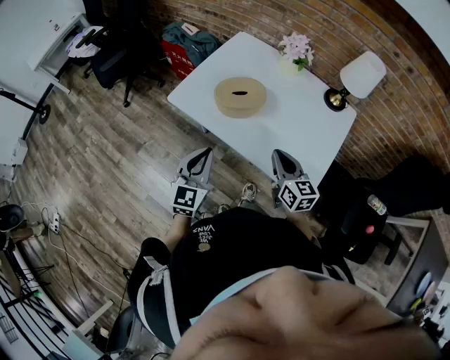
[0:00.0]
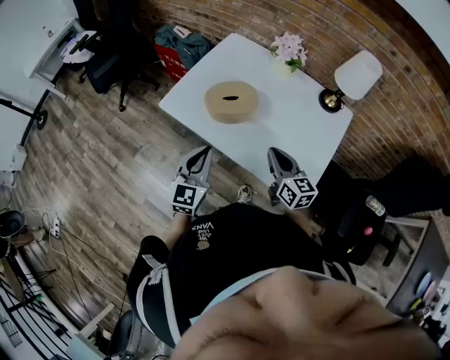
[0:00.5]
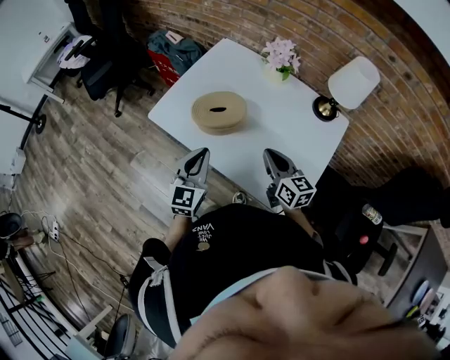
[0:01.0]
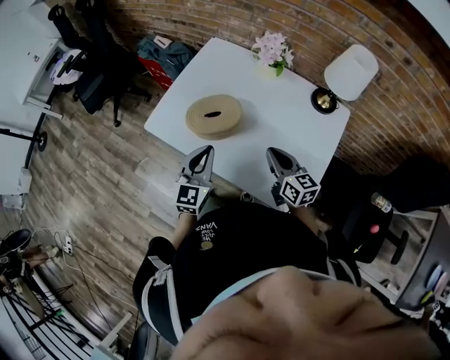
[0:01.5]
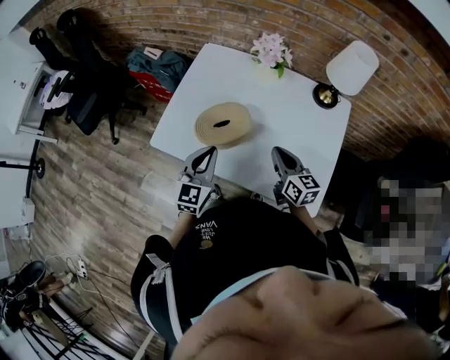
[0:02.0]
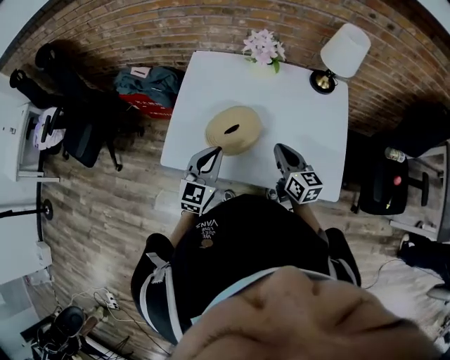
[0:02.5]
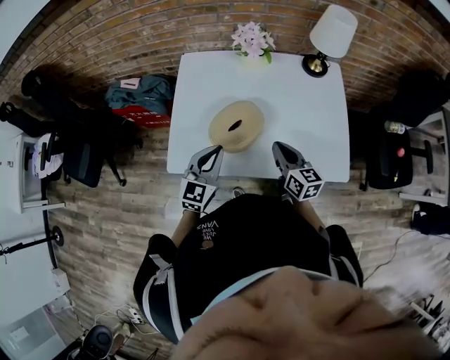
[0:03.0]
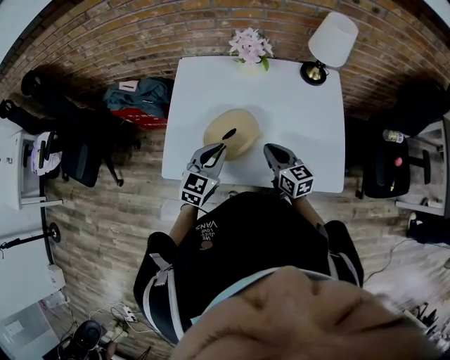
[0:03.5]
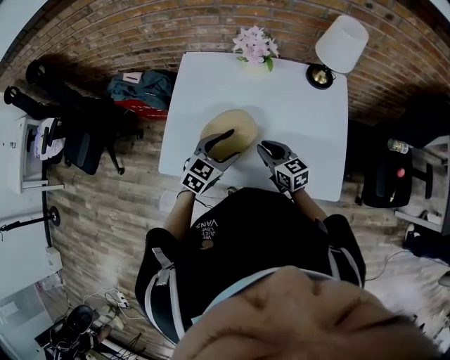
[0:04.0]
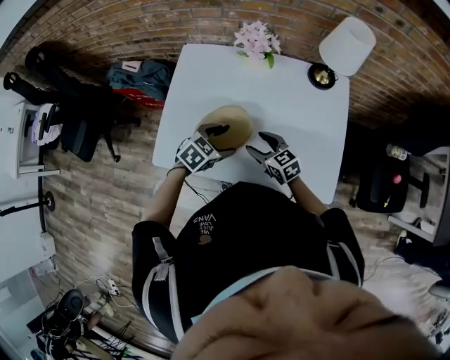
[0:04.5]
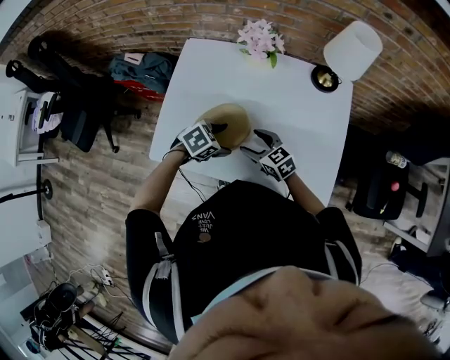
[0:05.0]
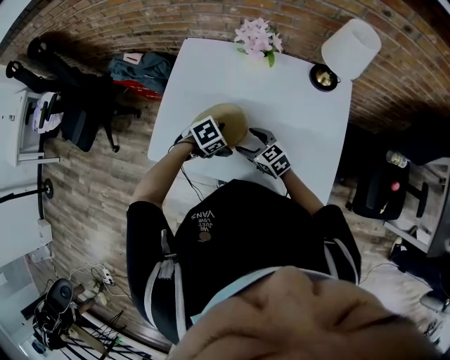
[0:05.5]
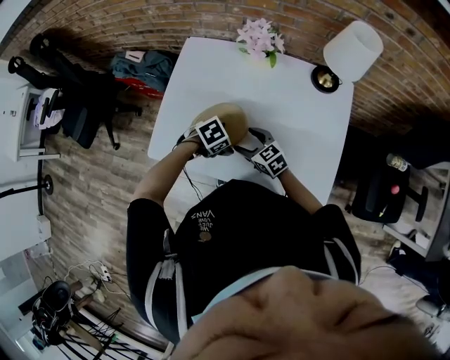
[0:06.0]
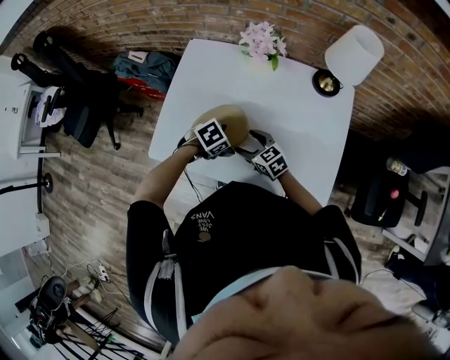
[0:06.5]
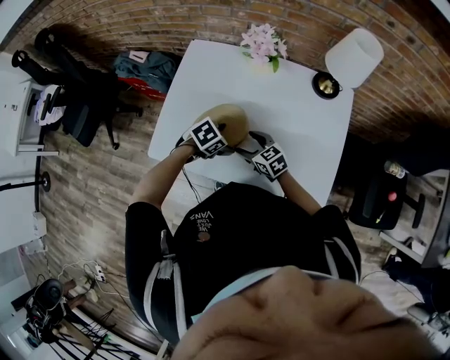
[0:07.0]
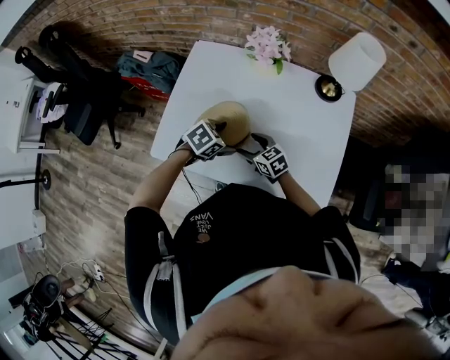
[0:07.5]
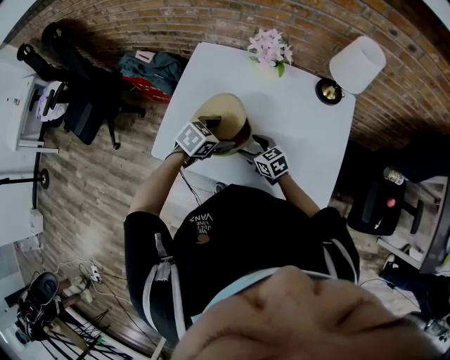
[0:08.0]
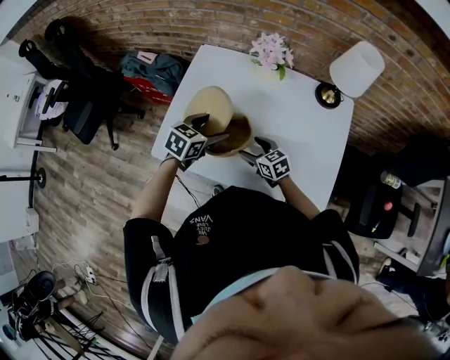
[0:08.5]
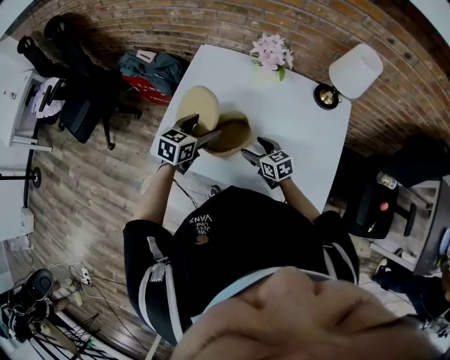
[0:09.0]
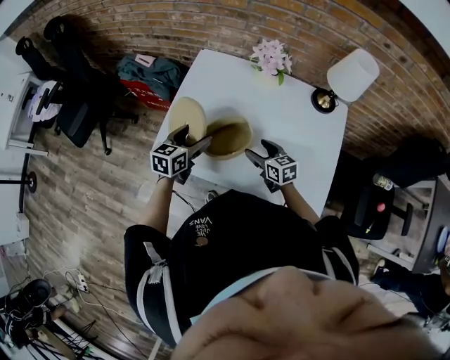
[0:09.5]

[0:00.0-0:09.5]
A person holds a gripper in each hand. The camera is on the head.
0:00.0 to 0:02.0: The two grippers go approximately 15 cm forward.
0:02.0 to 0:04.0: The right gripper moves to the left and downward, approximately 10 cm. Meanwhile the left gripper is displaced forward and downward by roughly 10 cm, moves about 5 cm to the left and comes back, swivels some 40 degrees, and opens up.
0:04.0 to 0:05.5: The right gripper travels downward by some 5 cm, turns by about 30 degrees, and opens, while the left gripper heads downward, covering some 10 cm, and points its fingers some 30 degrees further downward.
0:05.5 to 0:07.5: The grippers make only small movements.
0:07.5 to 0:09.5: The left gripper ends up about 15 cm from where it was, and points its fingers roughly 30 degrees further upward.

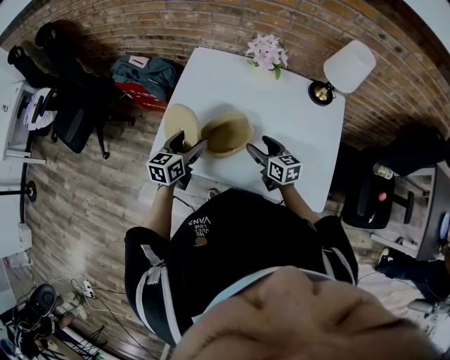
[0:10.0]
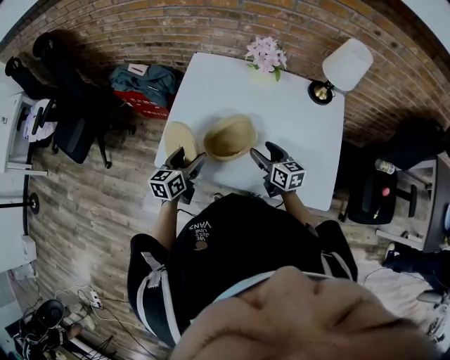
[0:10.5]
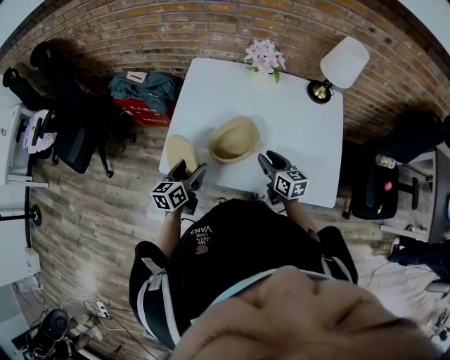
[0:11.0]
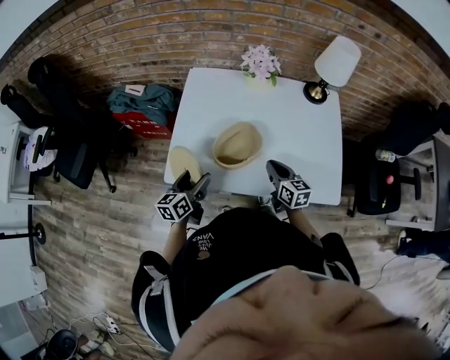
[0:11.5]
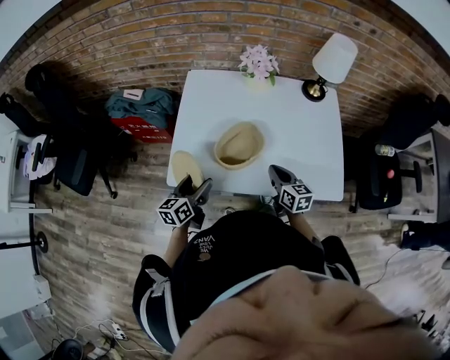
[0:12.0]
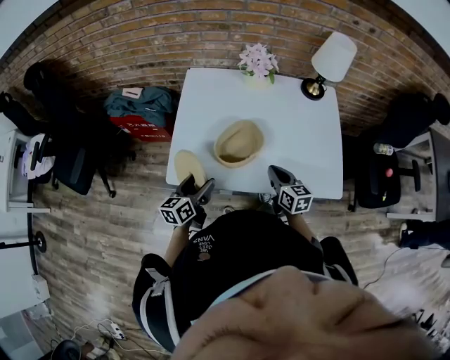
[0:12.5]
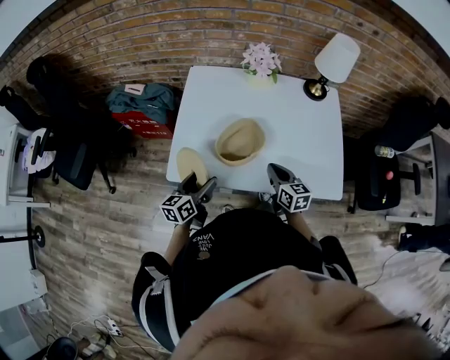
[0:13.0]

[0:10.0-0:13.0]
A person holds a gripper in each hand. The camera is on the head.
0:10.0 to 0:11.5: The right gripper heads backward, covering about 5 cm, and closes up. Meanwhile the left gripper shifts roughly 10 cm backward and to the left.
0:11.5 to 0:13.0: There are only small adjustments of the grippers.

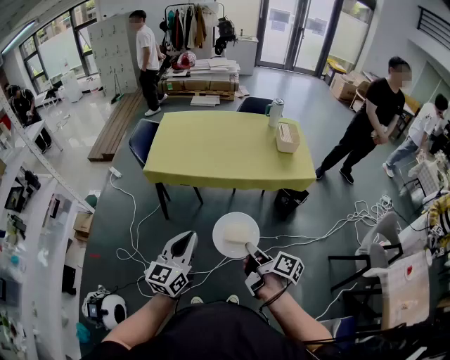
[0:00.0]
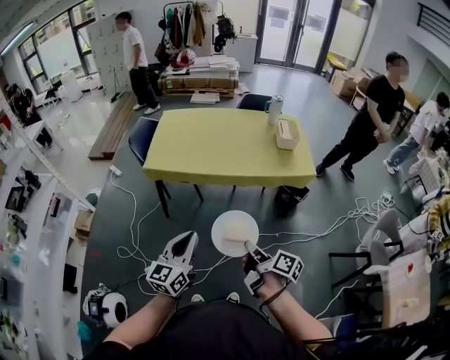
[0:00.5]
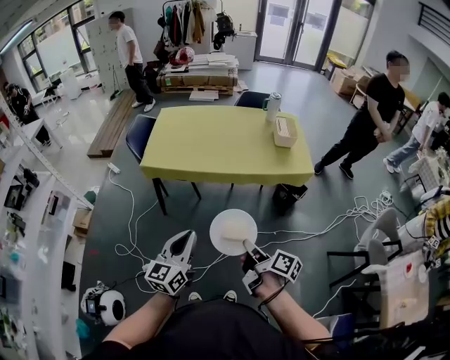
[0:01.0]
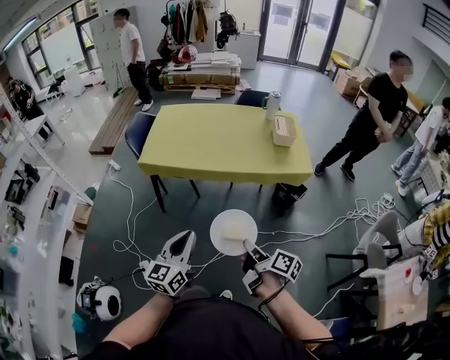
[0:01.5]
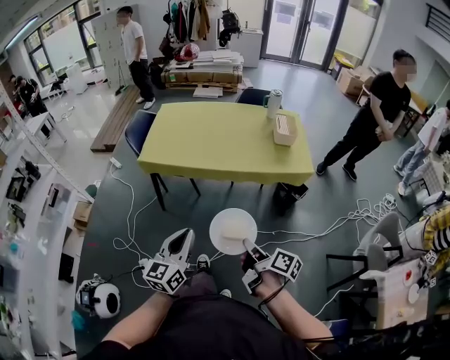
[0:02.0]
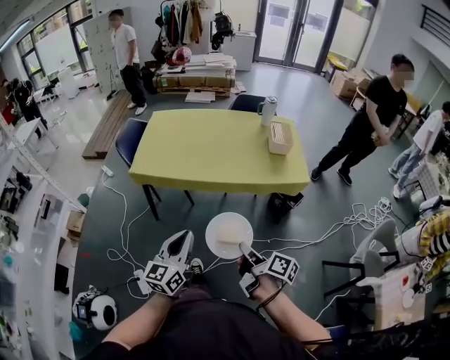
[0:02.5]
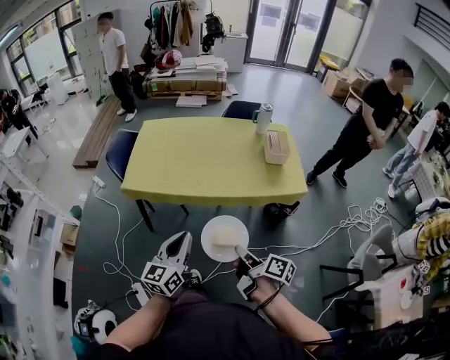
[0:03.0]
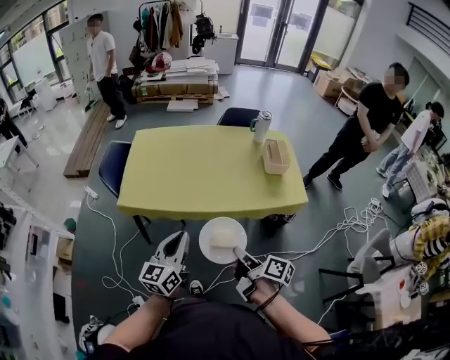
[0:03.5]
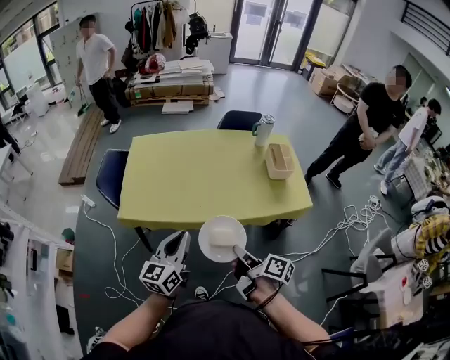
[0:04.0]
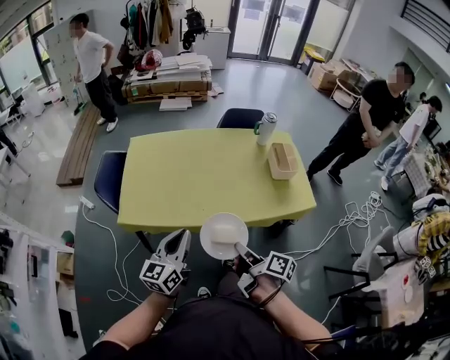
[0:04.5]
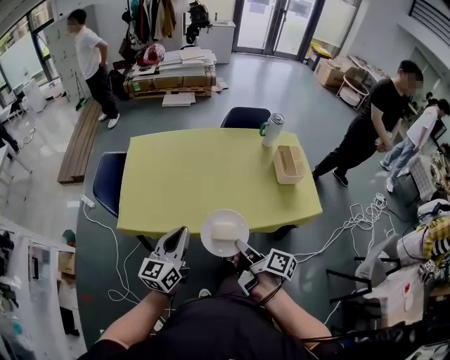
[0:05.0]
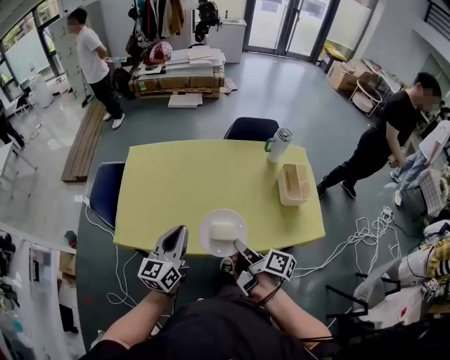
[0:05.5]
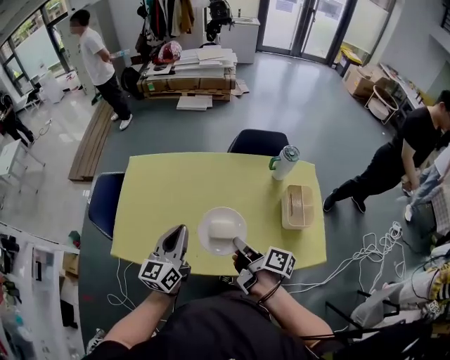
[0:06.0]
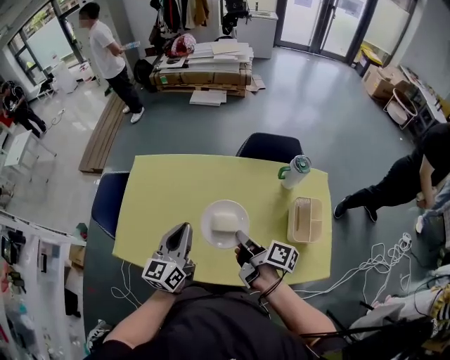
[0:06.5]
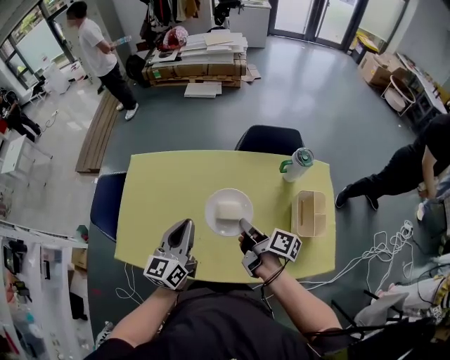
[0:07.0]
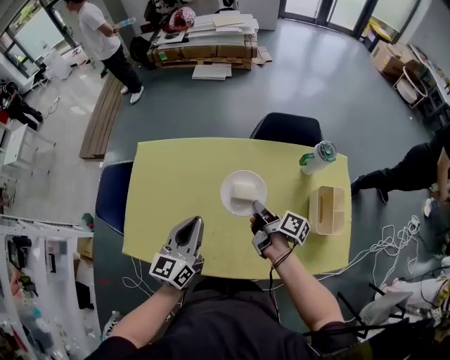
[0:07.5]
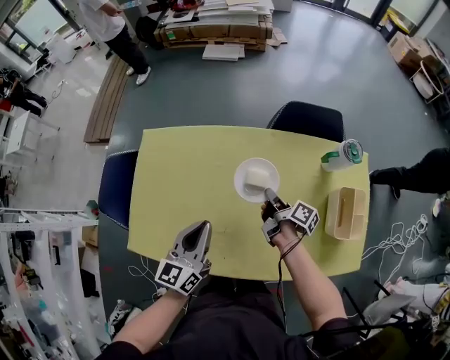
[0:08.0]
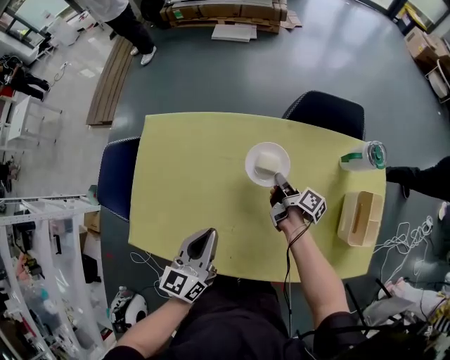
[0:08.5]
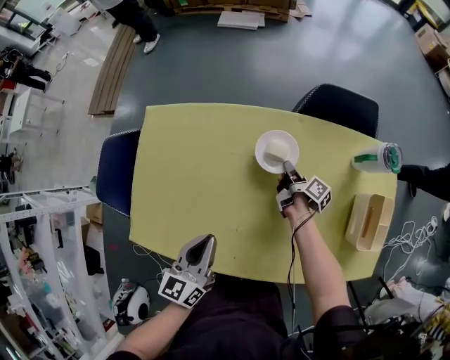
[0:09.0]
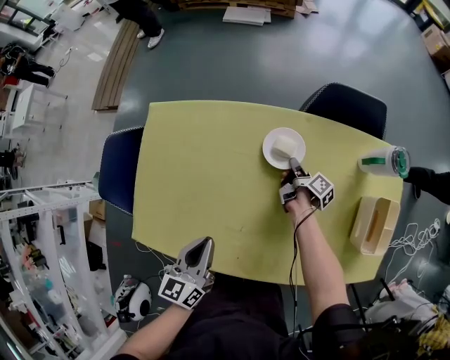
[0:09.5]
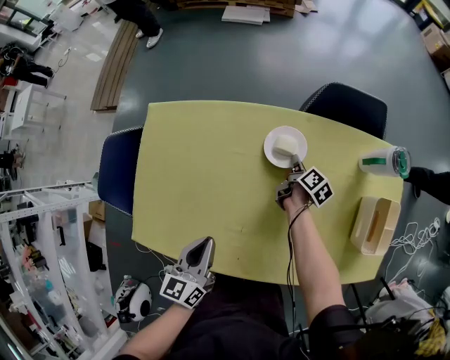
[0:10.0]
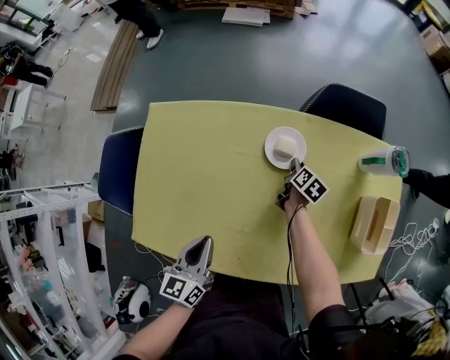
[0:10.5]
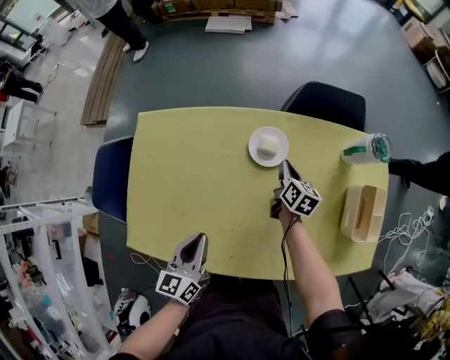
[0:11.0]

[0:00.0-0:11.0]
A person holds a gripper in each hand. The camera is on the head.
0:00.0 to 0:02.0: Both grippers travel together to the right, roughly 5 cm.
0:02.0 to 0:03.5: Both grippers move forward, some 25 cm.
0:03.5 to 0:05.5: The grippers both shift forward by approximately 30 cm.
0:05.5 to 0:07.5: The right gripper travels forward by roughly 30 cm; the left gripper heads forward, covering some 20 cm.
0:07.5 to 0:09.0: The left gripper shifts about 15 cm downward and to the left. The right gripper is displaced downward and forward by roughly 25 cm.
0:09.0 to 0:11.0: The right gripper goes approximately 5 cm upward, and rotates around the line of its fingers by some 40 degrees, counterclockwise from behind.

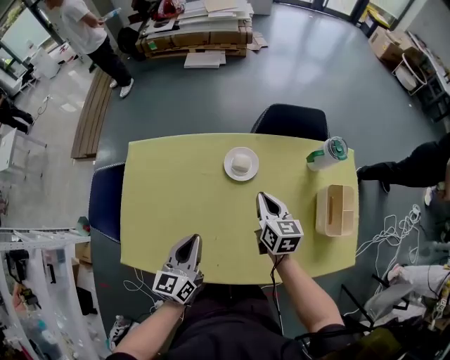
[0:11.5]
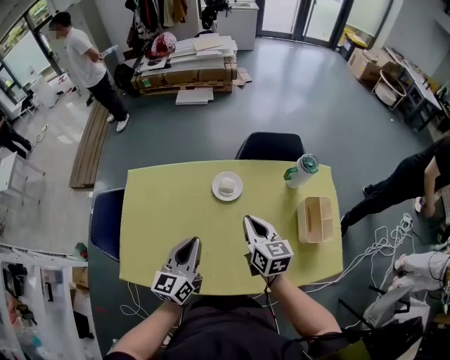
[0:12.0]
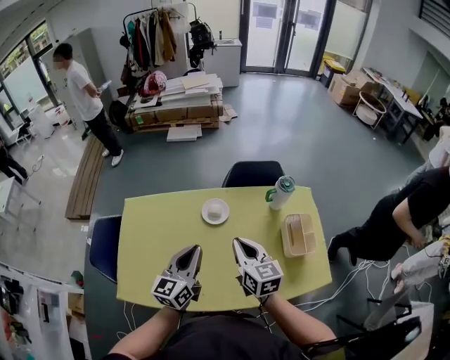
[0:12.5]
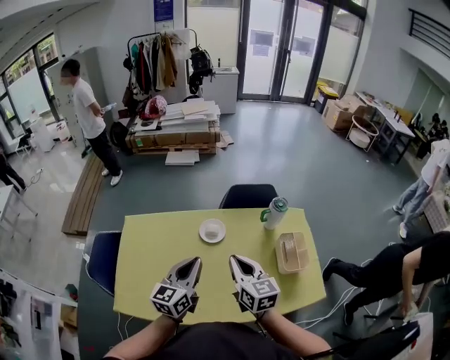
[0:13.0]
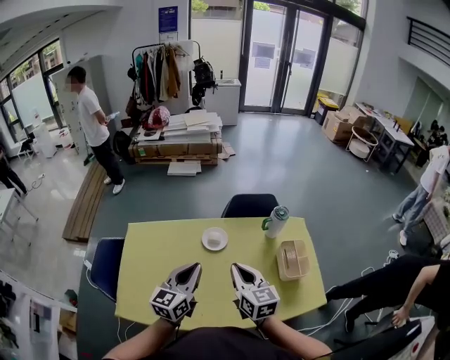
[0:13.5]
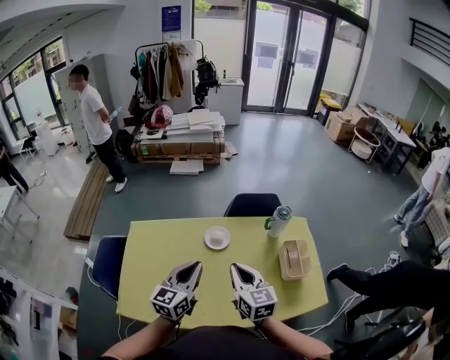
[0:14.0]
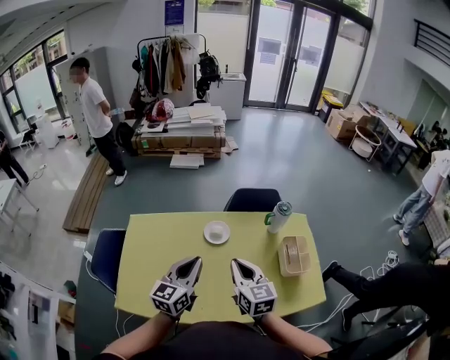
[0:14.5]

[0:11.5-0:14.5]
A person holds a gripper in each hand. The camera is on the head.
0:11.5 to 0:13.0: The right gripper is displaced upward and backward by about 25 cm. The left gripper travels upward and to the right by about 20 cm.
0:13.0 to 0:14.5: There are only small adjustments of the grippers.
